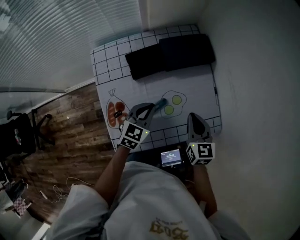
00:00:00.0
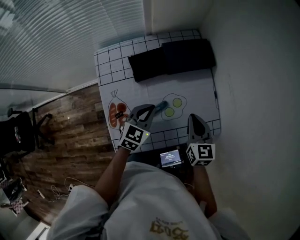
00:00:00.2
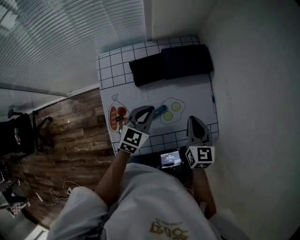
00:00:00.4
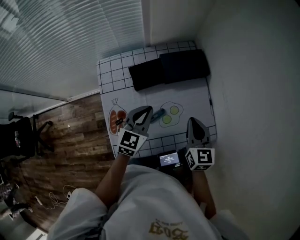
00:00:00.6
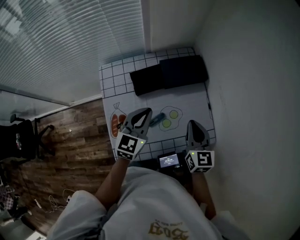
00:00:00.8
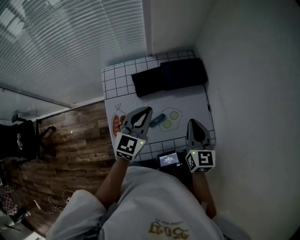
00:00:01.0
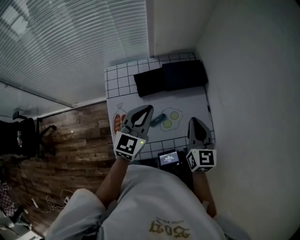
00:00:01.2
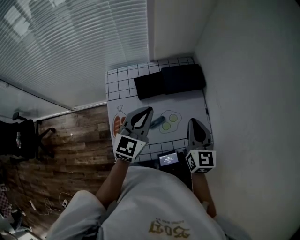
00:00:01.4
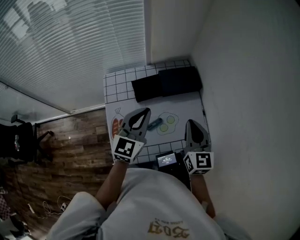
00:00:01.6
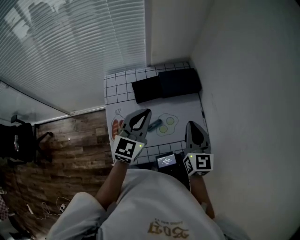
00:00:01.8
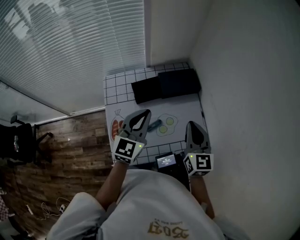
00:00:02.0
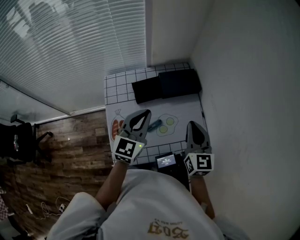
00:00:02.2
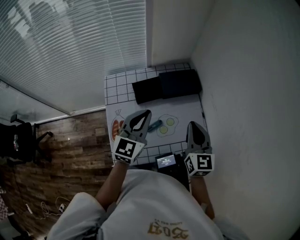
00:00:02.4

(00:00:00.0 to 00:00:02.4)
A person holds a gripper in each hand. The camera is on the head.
00:00:00.0 - 00:00:01.2: The two grippers go roughly 15 cm upward. The left gripper rotates approximately 20 degrees.
00:00:01.2 - 00:00:02.4: The grippers make only small movements.

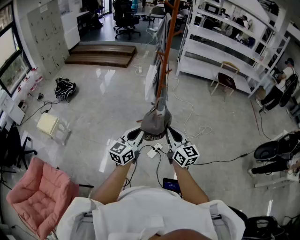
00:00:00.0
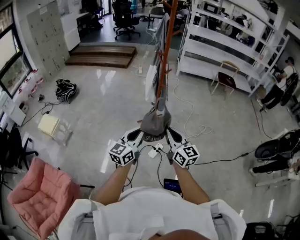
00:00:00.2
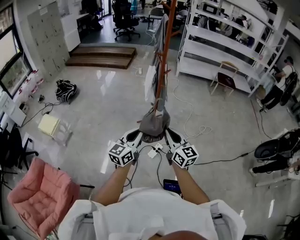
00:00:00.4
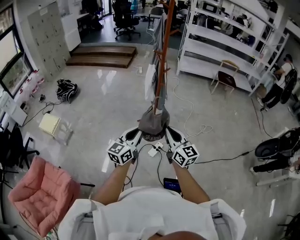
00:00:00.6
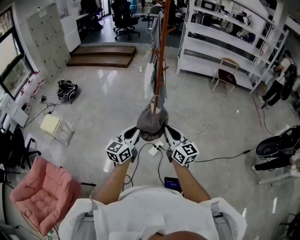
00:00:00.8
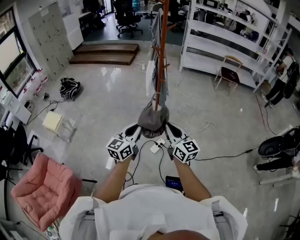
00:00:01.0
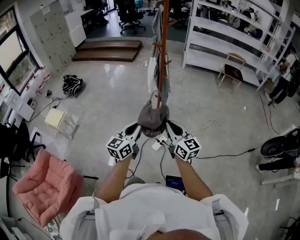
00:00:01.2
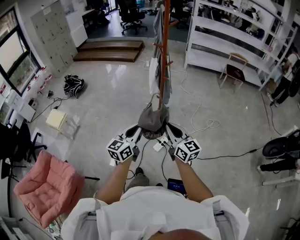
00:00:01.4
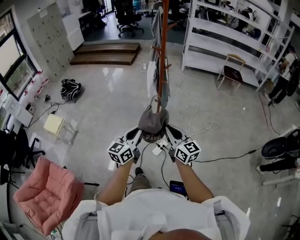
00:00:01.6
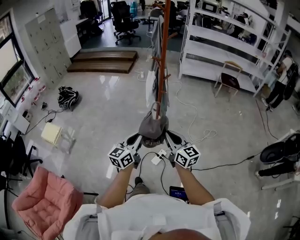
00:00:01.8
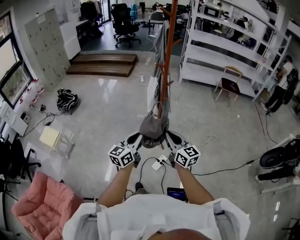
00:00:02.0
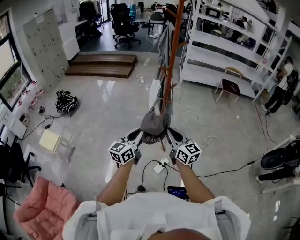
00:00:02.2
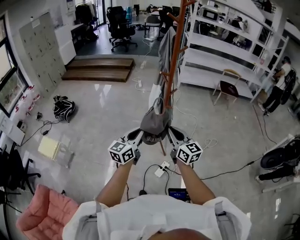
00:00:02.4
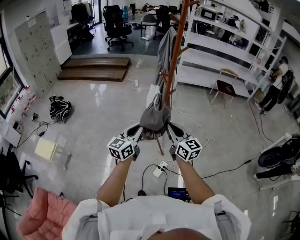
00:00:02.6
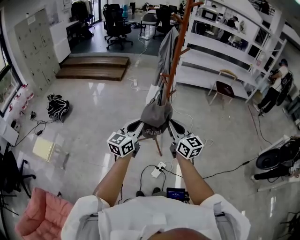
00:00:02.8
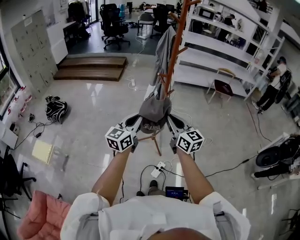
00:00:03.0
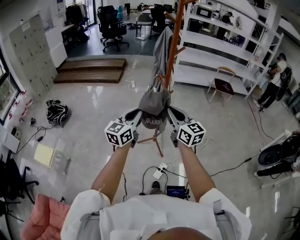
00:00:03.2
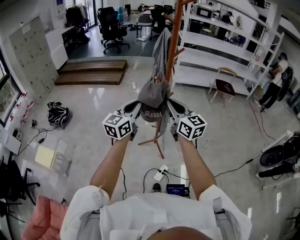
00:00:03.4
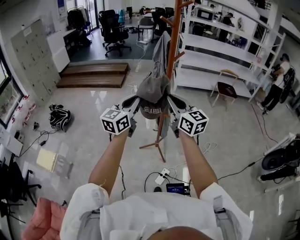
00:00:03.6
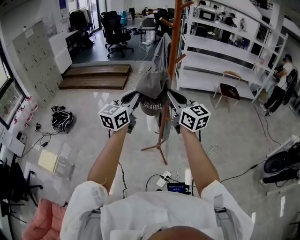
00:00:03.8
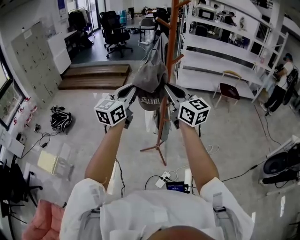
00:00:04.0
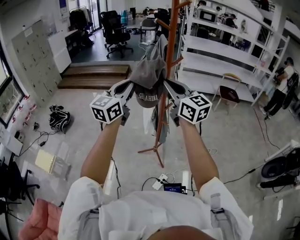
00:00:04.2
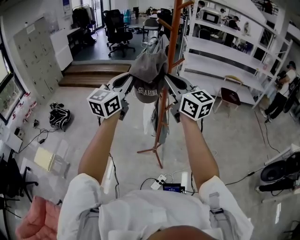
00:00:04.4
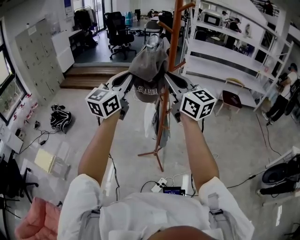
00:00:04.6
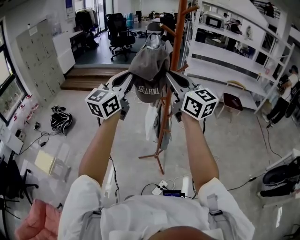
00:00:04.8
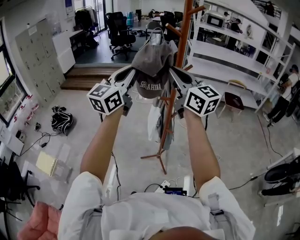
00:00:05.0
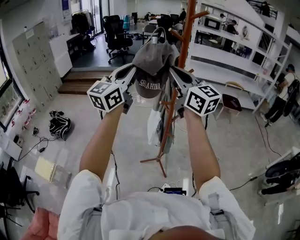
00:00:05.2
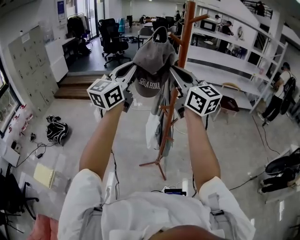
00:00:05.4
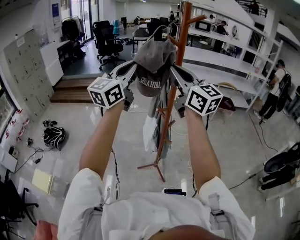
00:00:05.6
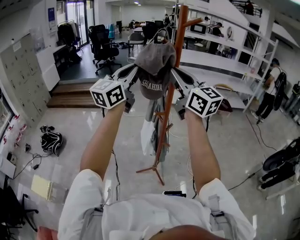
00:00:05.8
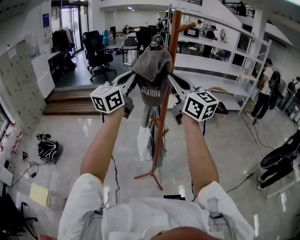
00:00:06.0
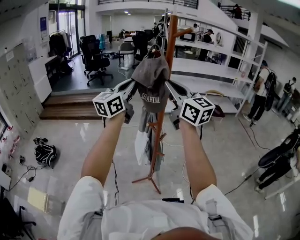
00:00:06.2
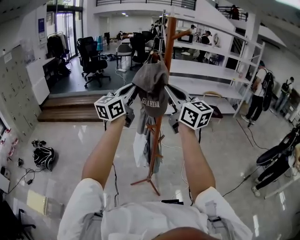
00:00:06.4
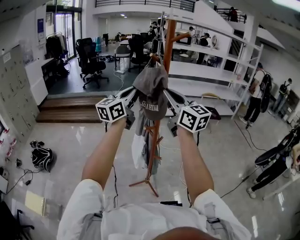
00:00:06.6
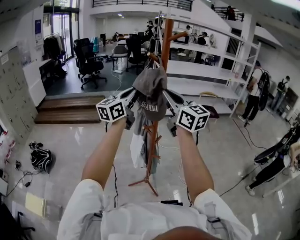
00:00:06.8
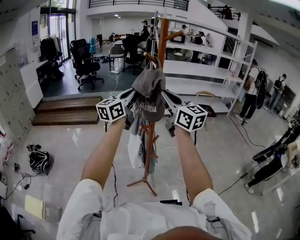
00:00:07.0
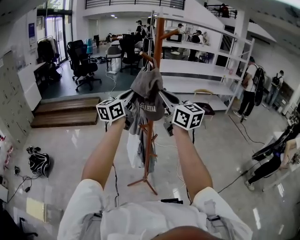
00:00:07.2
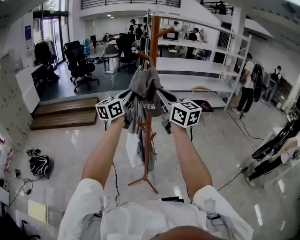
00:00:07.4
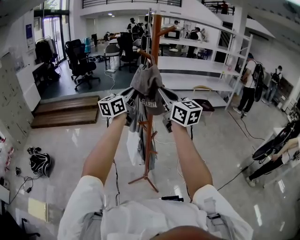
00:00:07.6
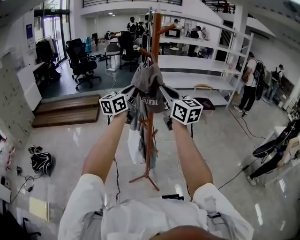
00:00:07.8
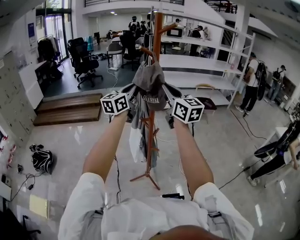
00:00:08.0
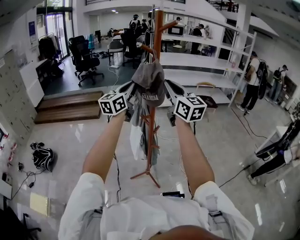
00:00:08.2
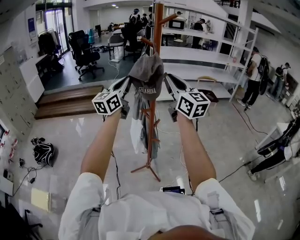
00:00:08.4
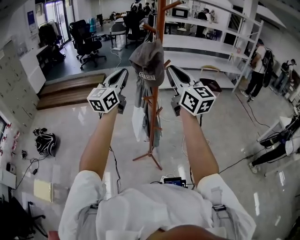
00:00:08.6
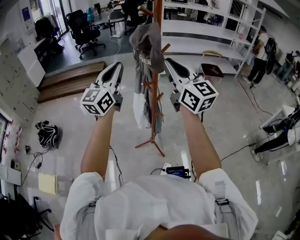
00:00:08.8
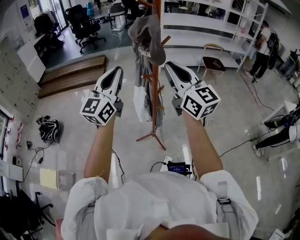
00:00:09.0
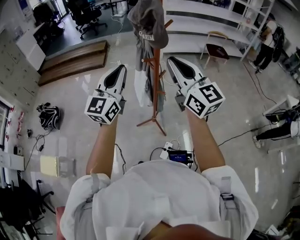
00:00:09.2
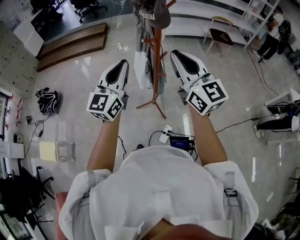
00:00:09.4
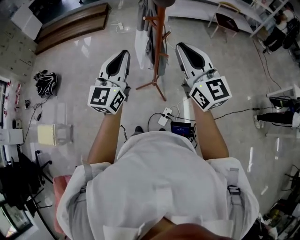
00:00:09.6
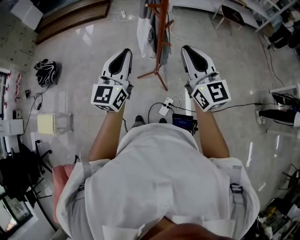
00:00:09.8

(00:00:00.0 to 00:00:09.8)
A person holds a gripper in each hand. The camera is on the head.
00:00:00.0 - 00:00:01.4: The right gripper changes place by some 5 cm.
00:00:01.4 - 00:00:02.8: Both grippers travel together forward and to the left, roughly 30 cm.
00:00:02.8 - 00:00:04.2: Both grippers travel together upward and forward, about 25 cm.
00:00:04.2 - 00:00:05.6: The two grippers go about 15 cm upward and forward.
00:00:05.6 - 00:00:07.0: The left gripper heads forward, downward and to the right, covering some 15 cm; the right gripper changes place by about 5 cm.
00:00:07.0 - 00:00:08.4: The grippers stay close to where they were, moving slightly.
00:00:08.4 - 00:00:09.8: The left gripper moves backward and downward, some 30 cm; the right gripper shifts some 25 cm downward and backward.

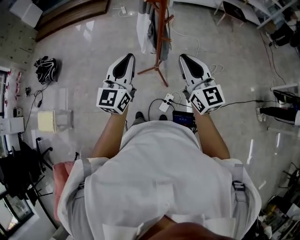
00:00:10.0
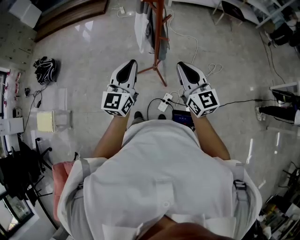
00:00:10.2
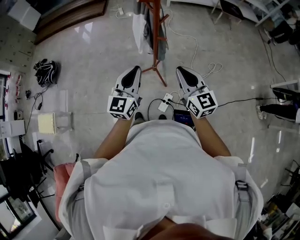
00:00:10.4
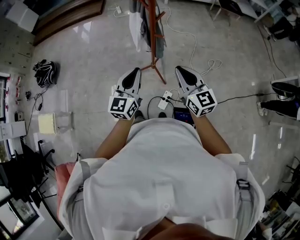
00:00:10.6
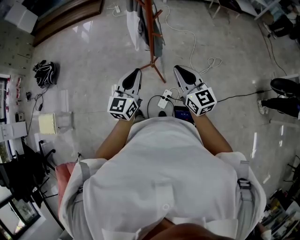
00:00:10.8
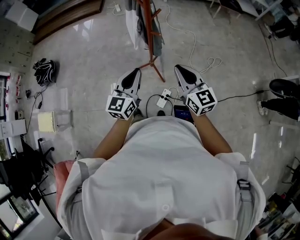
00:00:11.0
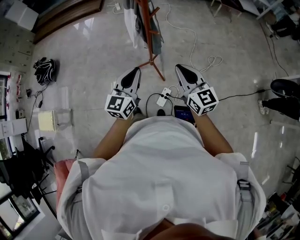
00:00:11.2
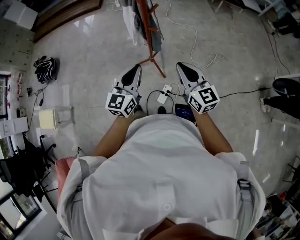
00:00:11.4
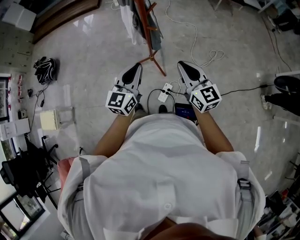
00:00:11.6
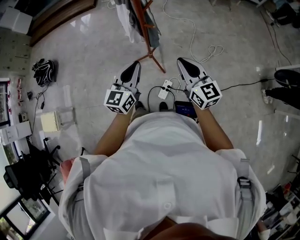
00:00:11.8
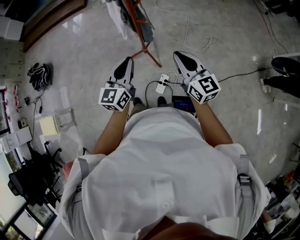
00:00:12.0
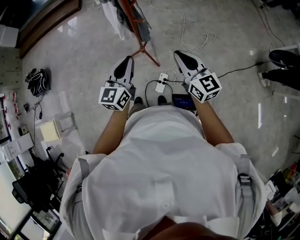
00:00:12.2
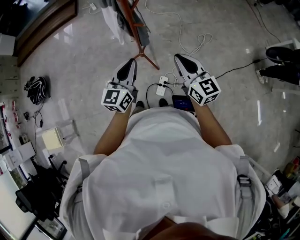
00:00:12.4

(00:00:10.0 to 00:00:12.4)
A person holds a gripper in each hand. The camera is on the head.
00:00:10.0 - 00:00:11.2: Both grippers move downward and to the right, about 15 cm.
00:00:11.2 - 00:00:12.4: There are only small adjustments of the grippers.

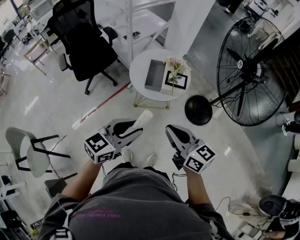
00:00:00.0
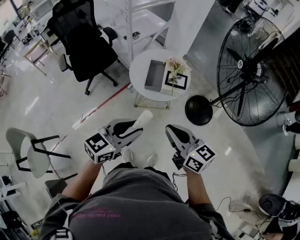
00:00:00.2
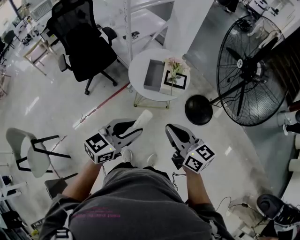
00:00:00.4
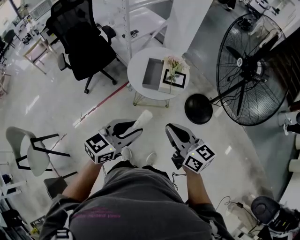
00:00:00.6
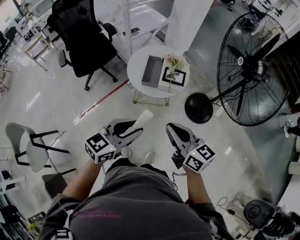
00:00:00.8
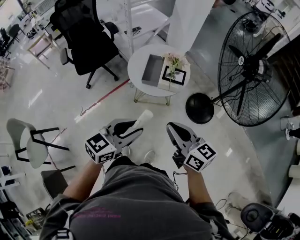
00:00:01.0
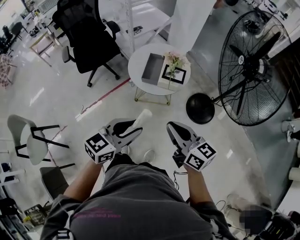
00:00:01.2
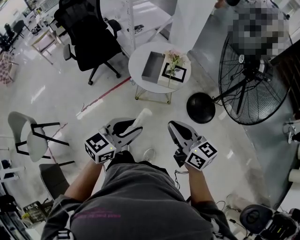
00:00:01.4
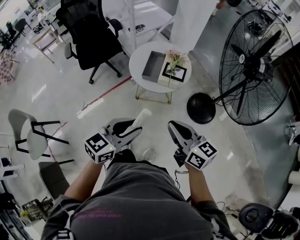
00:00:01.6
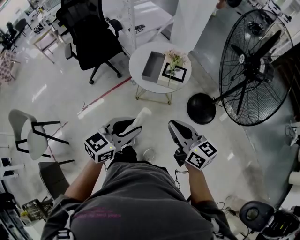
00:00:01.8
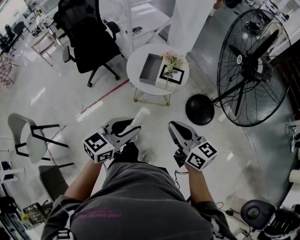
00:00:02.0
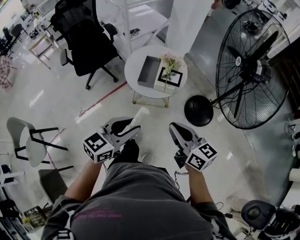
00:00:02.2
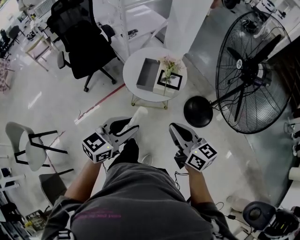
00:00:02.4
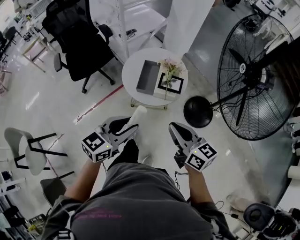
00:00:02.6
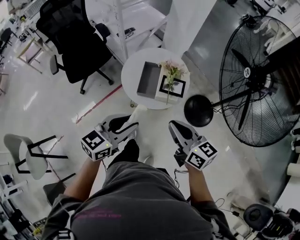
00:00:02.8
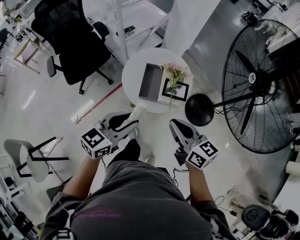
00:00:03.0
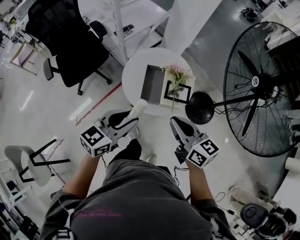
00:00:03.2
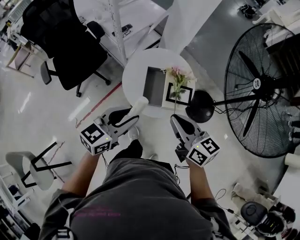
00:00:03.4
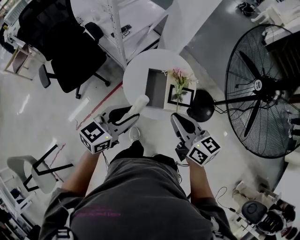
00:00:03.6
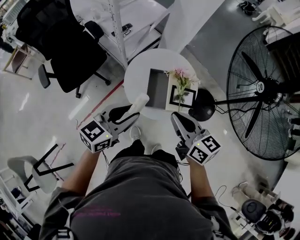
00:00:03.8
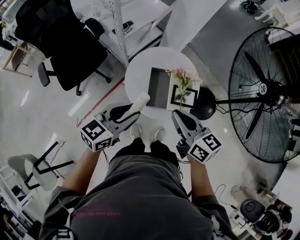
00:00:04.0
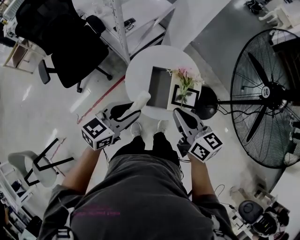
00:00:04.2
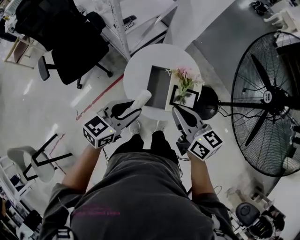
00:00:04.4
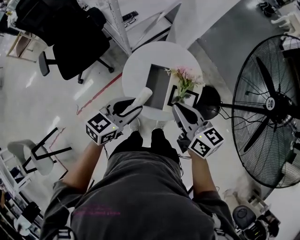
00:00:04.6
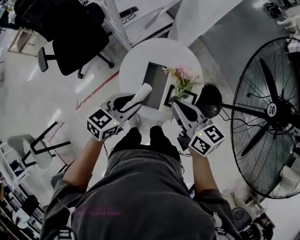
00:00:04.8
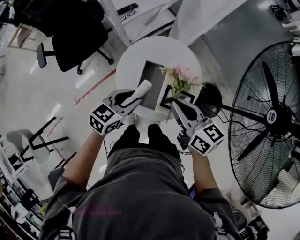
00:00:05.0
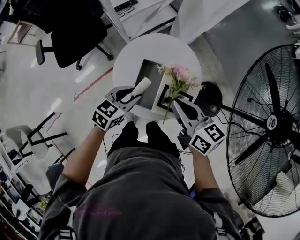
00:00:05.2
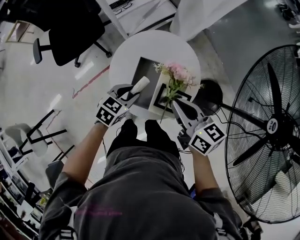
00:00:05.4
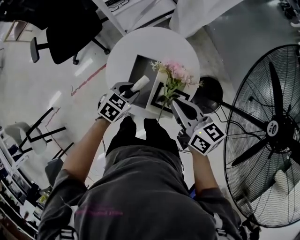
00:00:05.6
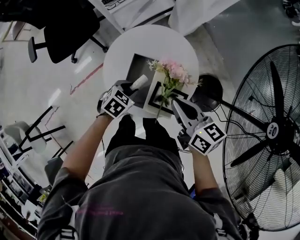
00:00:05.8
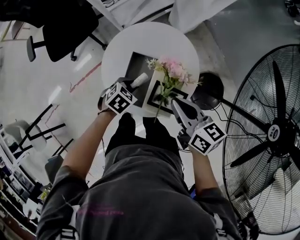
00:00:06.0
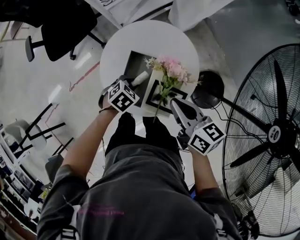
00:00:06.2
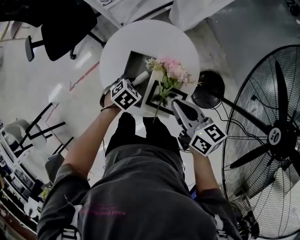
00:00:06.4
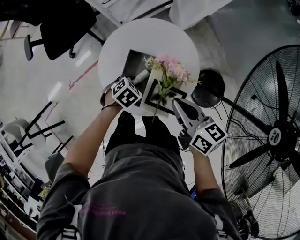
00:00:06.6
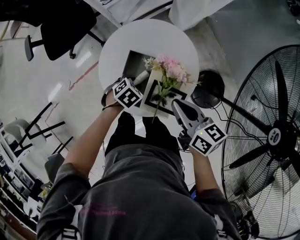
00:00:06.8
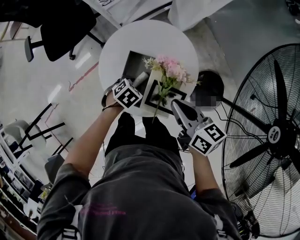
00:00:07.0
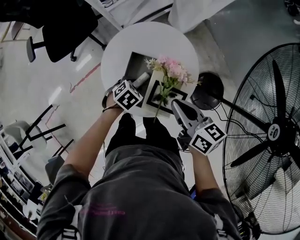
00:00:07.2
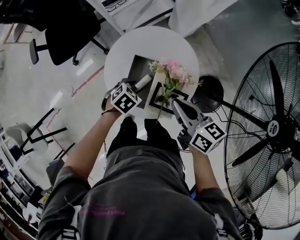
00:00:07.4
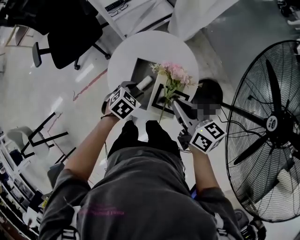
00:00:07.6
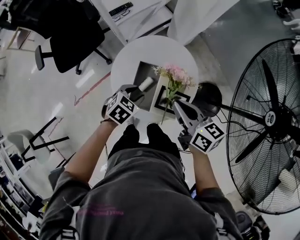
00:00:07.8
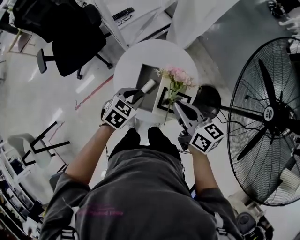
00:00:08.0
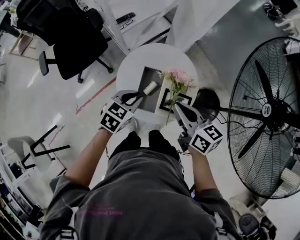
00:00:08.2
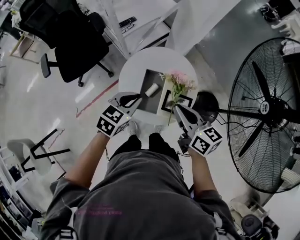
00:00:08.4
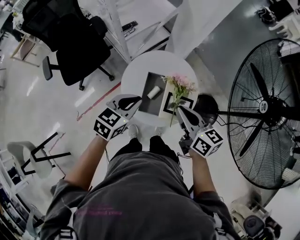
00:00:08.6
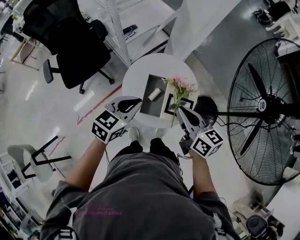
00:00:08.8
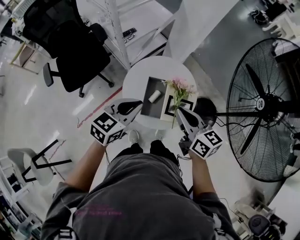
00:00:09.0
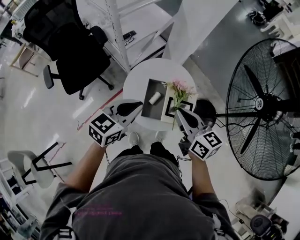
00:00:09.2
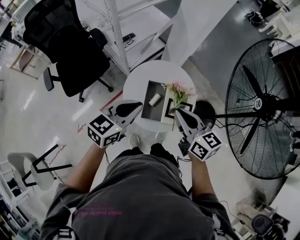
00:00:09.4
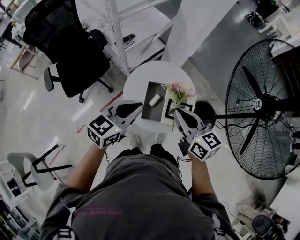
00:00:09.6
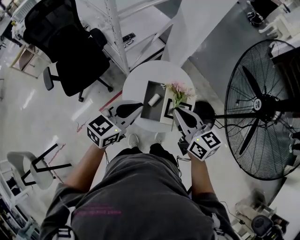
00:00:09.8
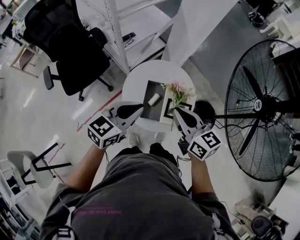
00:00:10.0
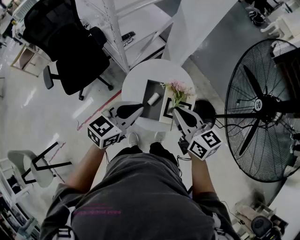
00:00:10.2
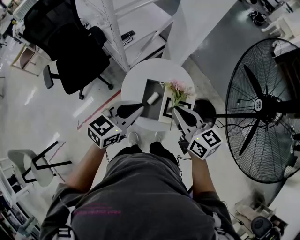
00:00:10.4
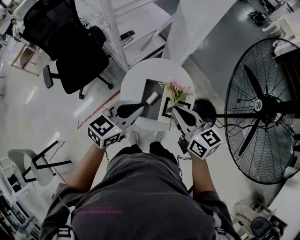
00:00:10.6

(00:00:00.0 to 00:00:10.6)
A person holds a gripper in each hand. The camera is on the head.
00:00:00.0 - 00:00:01.6: The two grippers go about 10 cm to the right.
00:00:01.6 - 00:00:03.0: The two grippers go approximately 20 cm forward.
00:00:03.0 - 00:00:04.6: The right gripper moves forward, approximately 20 cm. The left gripper moves forward and downward, about 20 cm.
00:00:04.6 - 00:00:06.0: The left gripper moves downward, about 25 cm, and angles its fingers downward, by some 40 degrees. Meanwhile the right gripper heads downward, to the right and forward, covering approximately 15 cm.
00:00:06.0 - 00:00:07.6: There are only small adjustments of the grippers.
00:00:07.6 - 00:00:09.0: The left gripper heads upward, covering some 25 cm, points its fingers some 40 degrees further upward, and closes. The right gripper travels upward, to the left and backward by roughly 15 cm.
00:00:09.0 - 00:00:10.6: The grippers make only small movements.
